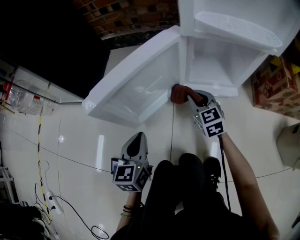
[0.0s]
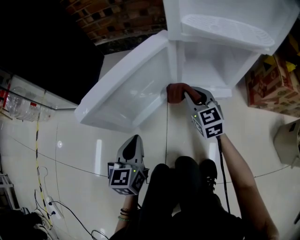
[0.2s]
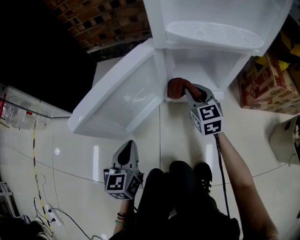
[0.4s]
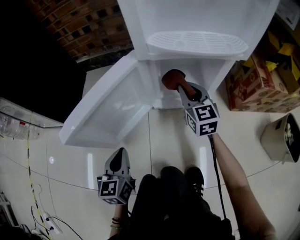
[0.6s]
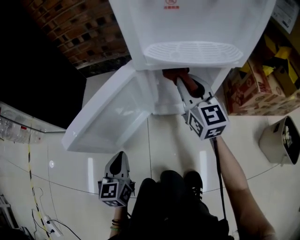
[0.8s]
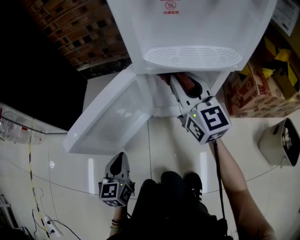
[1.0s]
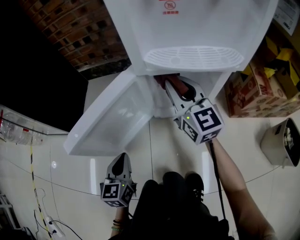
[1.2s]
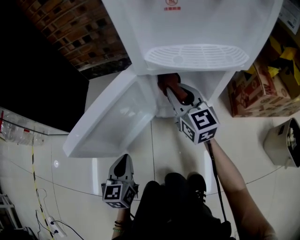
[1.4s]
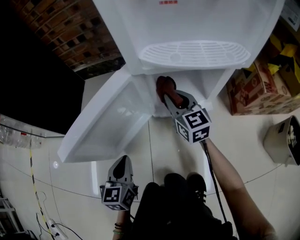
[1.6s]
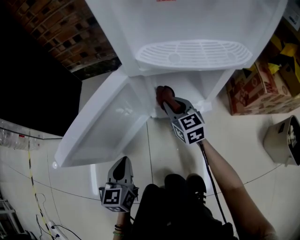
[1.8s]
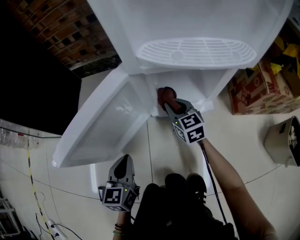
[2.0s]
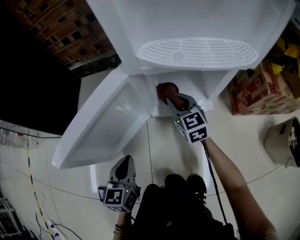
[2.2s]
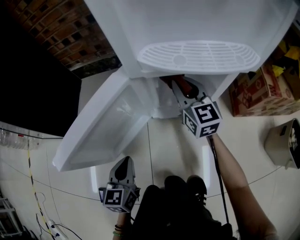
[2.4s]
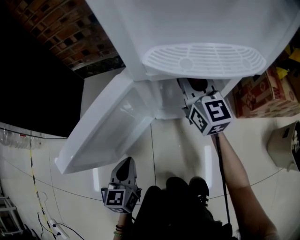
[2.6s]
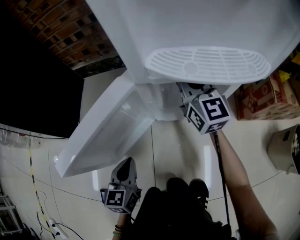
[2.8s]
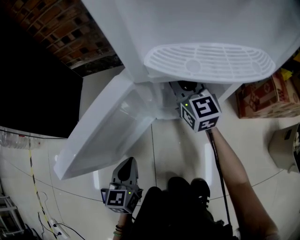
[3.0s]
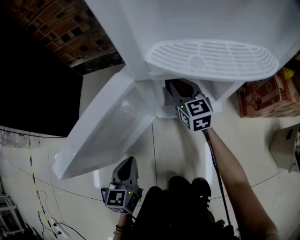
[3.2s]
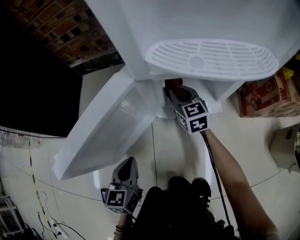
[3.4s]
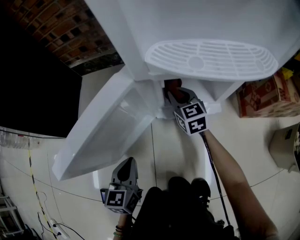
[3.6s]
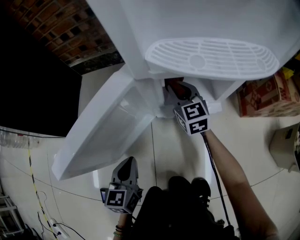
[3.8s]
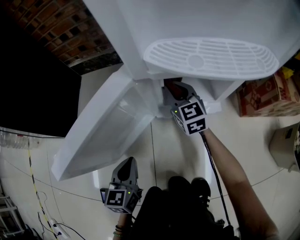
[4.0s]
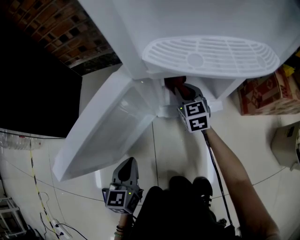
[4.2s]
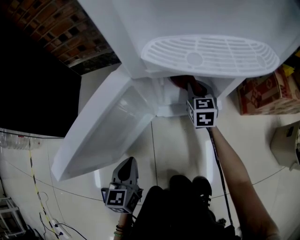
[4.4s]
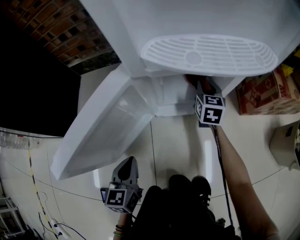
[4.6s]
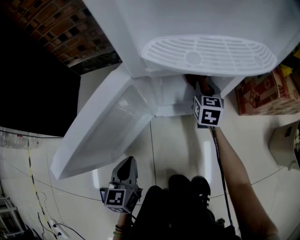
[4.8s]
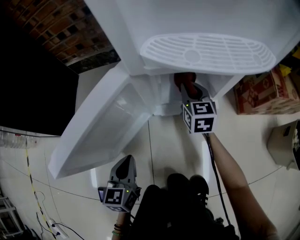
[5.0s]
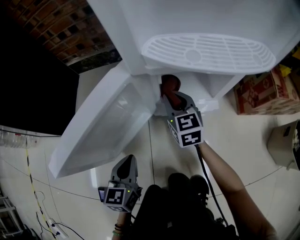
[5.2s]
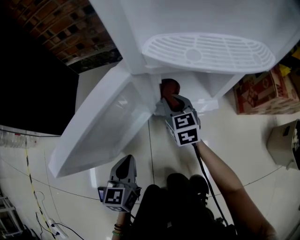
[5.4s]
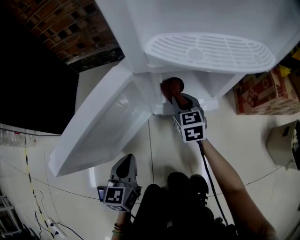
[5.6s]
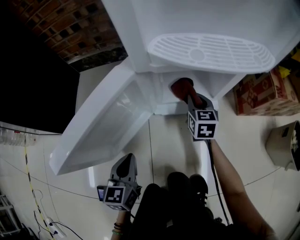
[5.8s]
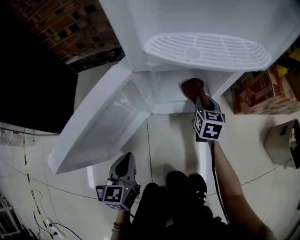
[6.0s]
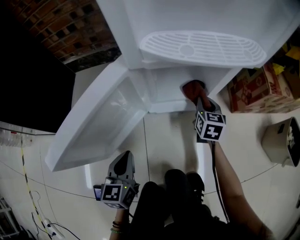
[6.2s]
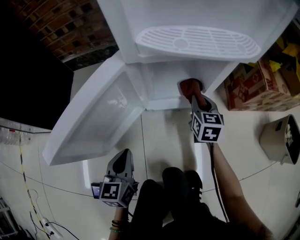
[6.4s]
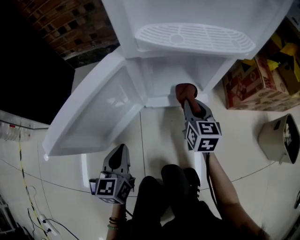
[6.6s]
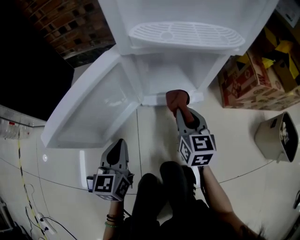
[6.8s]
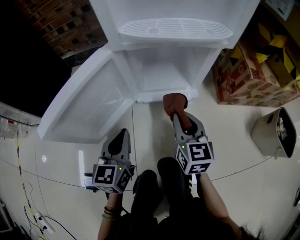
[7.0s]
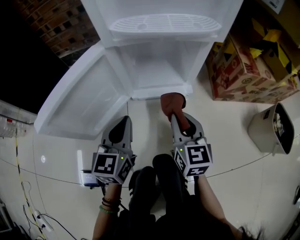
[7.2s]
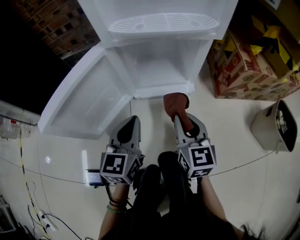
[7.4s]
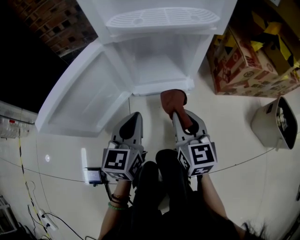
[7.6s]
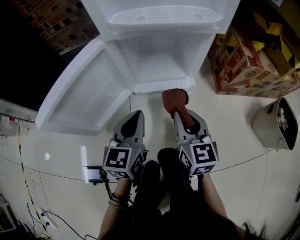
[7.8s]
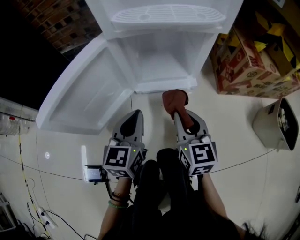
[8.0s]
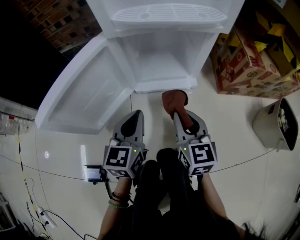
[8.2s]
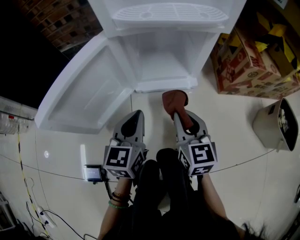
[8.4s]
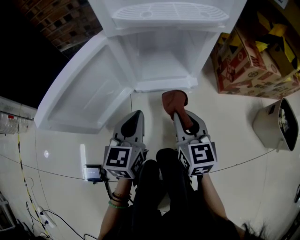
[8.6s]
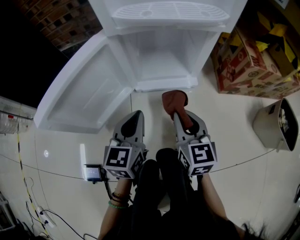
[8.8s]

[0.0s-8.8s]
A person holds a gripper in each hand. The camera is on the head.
0.0s to 1.4s: The right gripper travels upward by some 15 cm, and turns by approximately 30 degrees.
1.4s to 3.0s: The right gripper moves up and down over about 20 cm, changing direction 2 times.
3.0s to 4.4s: The right gripper travels downward and to the right by approximately 15 cm, and rotates roughly 30 degrees.
4.4s to 5.8s: The right gripper goes left and right, some 15 cm each way, reversing 2 times.
5.8s to 7.4s: The right gripper goes some 25 cm backward and upward; the left gripper moves to the right and upward, approximately 15 cm.
7.4s to 8.8s: The grippers move only a little.

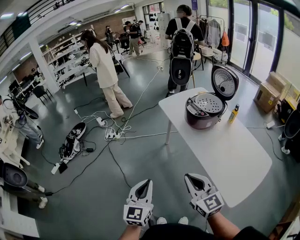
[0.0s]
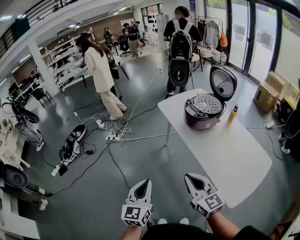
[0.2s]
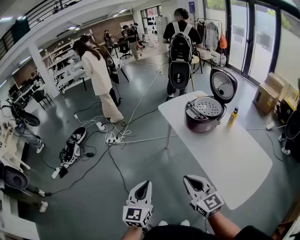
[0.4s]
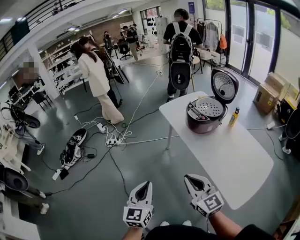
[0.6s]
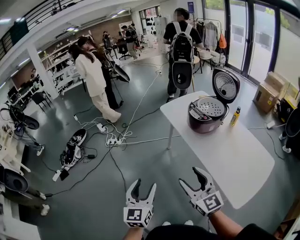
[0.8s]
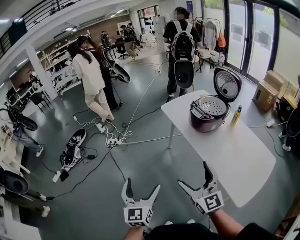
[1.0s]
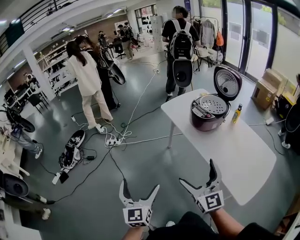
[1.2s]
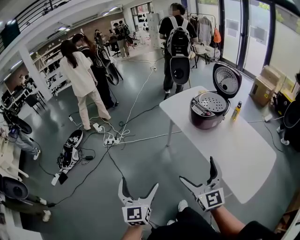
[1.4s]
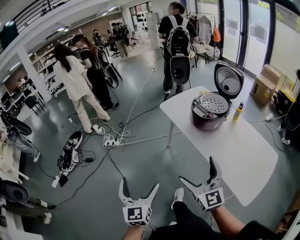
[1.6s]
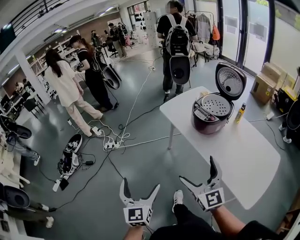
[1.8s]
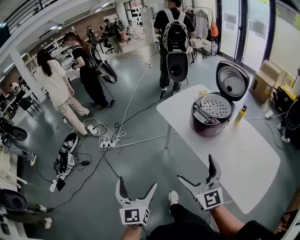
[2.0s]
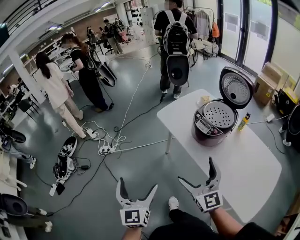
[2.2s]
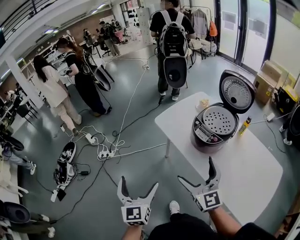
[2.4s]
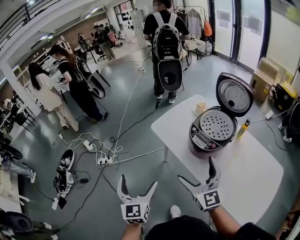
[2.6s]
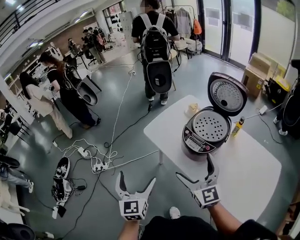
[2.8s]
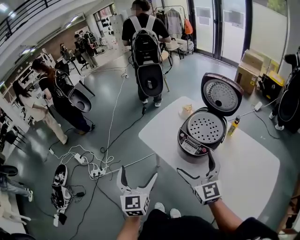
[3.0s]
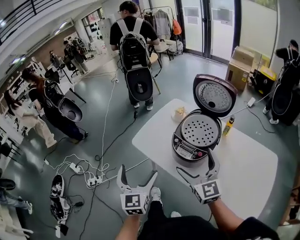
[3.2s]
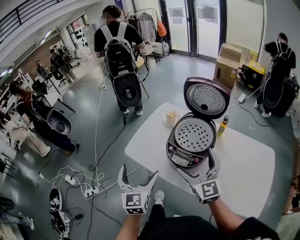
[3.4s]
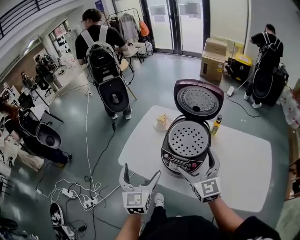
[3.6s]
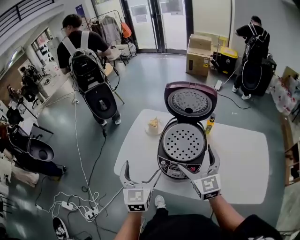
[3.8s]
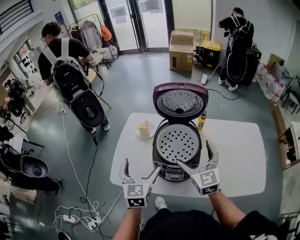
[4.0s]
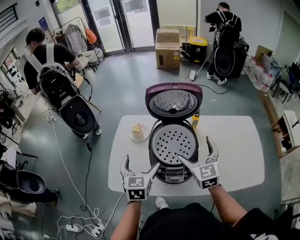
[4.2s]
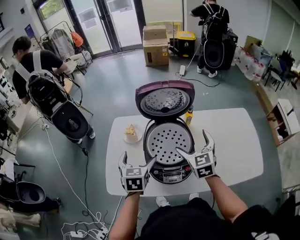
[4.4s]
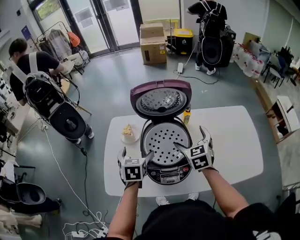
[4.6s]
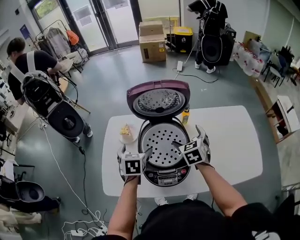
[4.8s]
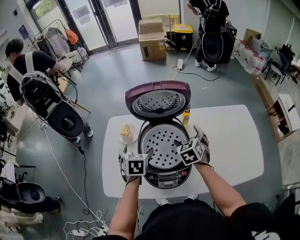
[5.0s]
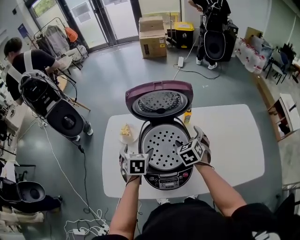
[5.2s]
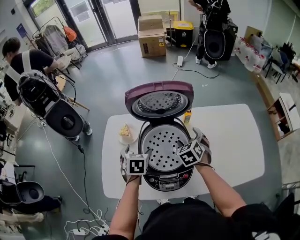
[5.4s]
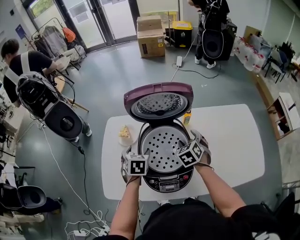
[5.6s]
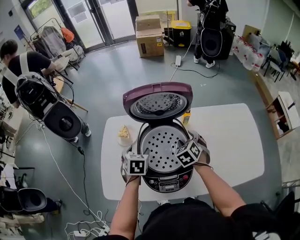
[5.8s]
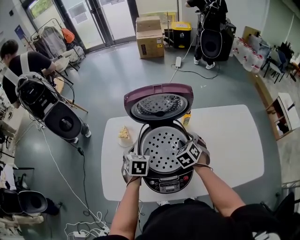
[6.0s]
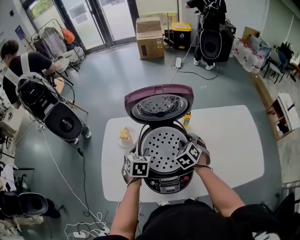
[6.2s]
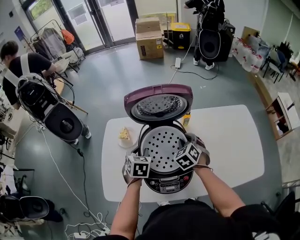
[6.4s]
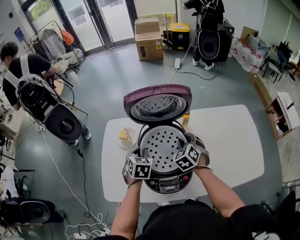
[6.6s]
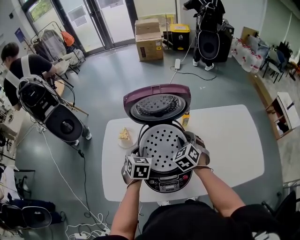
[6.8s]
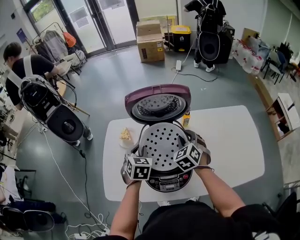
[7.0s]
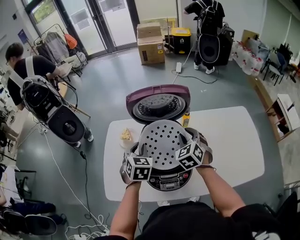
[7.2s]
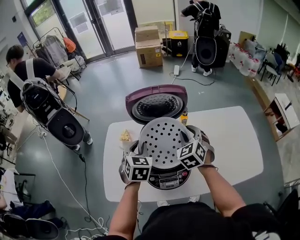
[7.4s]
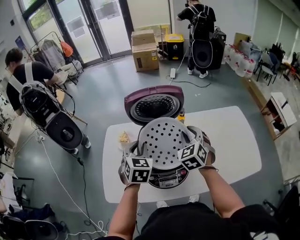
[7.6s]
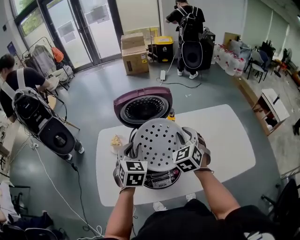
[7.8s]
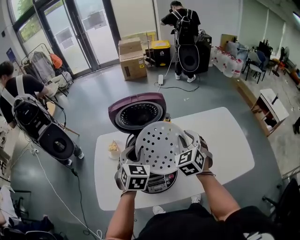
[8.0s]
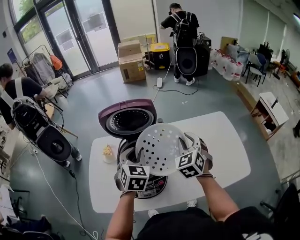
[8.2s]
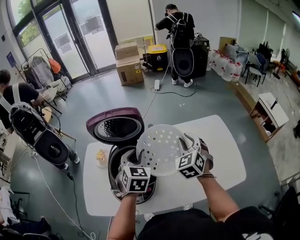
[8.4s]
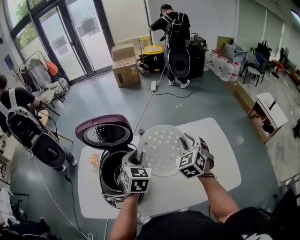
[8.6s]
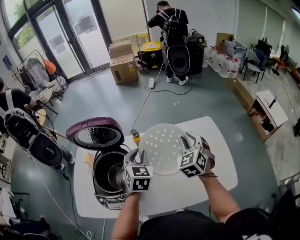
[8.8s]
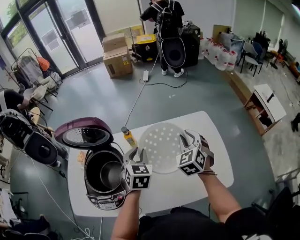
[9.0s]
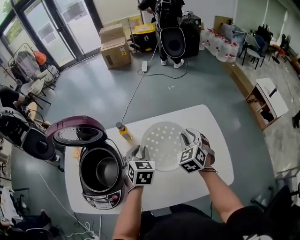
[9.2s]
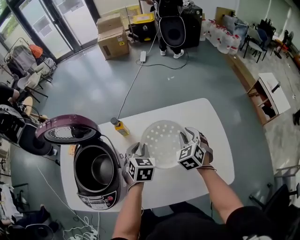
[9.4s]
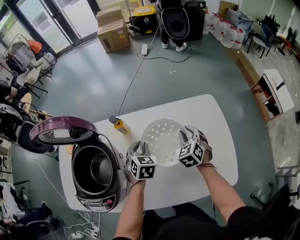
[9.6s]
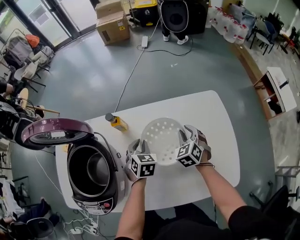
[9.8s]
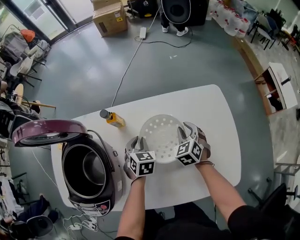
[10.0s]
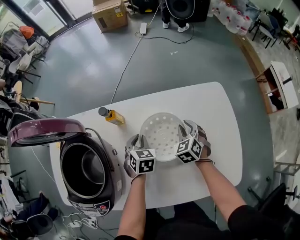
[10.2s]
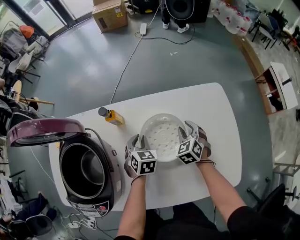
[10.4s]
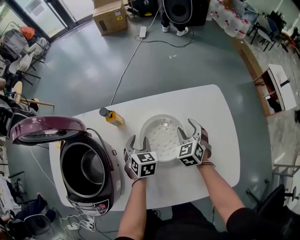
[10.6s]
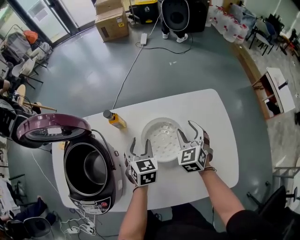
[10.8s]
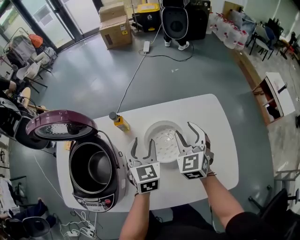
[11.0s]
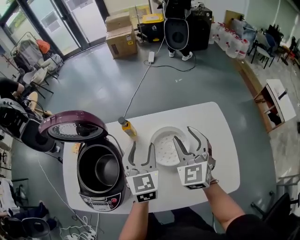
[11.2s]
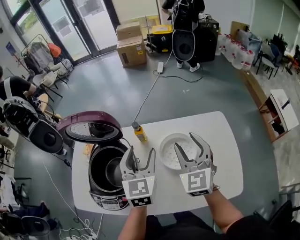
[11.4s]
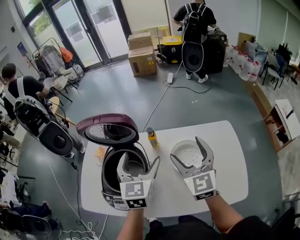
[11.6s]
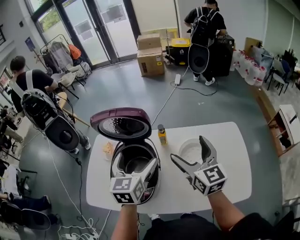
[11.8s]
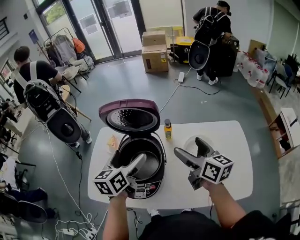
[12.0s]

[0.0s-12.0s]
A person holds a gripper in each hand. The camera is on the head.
0.0s to 1.6s: The right gripper is displaced forward by about 10 cm, and opens up. Meanwhile the left gripper moves to the left and forward, some 15 cm, and opens.
1.6s to 3.0s: Both grippers move forward, approximately 35 cm.
3.0s to 4.4s: The left gripper shifts by some 40 cm, and turns by some 50 degrees. The right gripper ends up some 30 cm from where it was, and swivels about 60 degrees.
4.4s to 6.0s: Both grippers travel together downward and forward, approximately 15 cm. The right gripper turns by roughly 30 degrees, and closes up. Meanwhile the left gripper closes.
6.0s to 7.6s: The grippers both shift upward by some 15 cm. The left gripper changes its angle by approximately 20 degrees.
7.6s to 9.0s: Both grippers move to the right, about 30 cm.
9.0s to 10.4s: Both grippers travel together downward, roughly 25 cm.
10.4s to 12.0s: The two grippers go roughly 40 cm upward and to the left. The right gripper points its fingers approximately 40 degrees further upward, and opens up. The left gripper tilts its fingers approximately 30 degrees upward, and opens up.

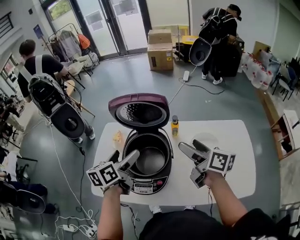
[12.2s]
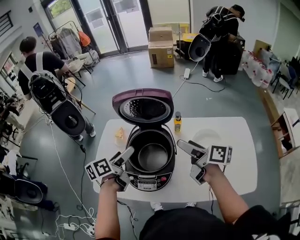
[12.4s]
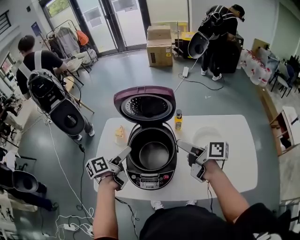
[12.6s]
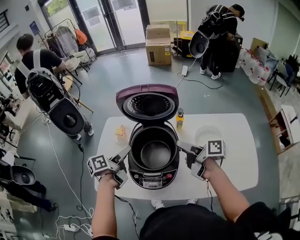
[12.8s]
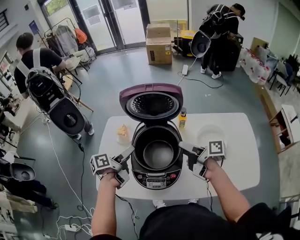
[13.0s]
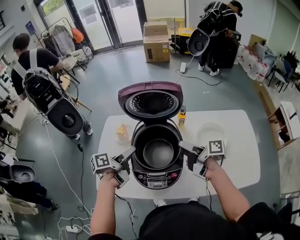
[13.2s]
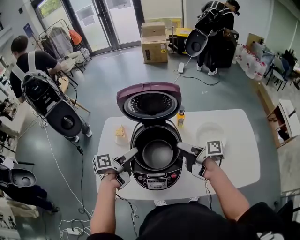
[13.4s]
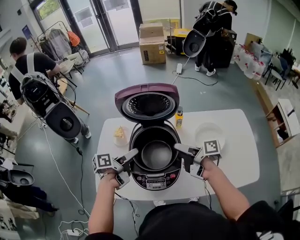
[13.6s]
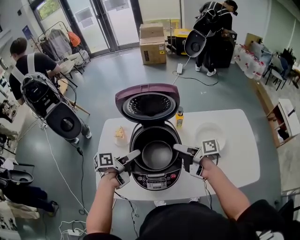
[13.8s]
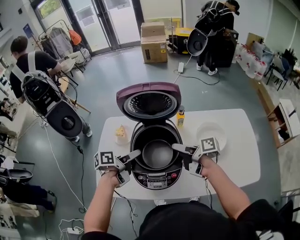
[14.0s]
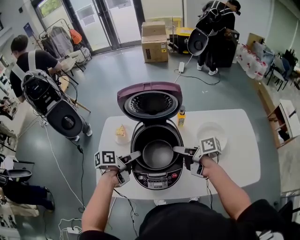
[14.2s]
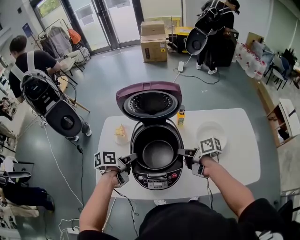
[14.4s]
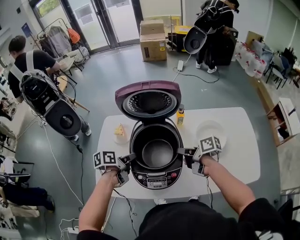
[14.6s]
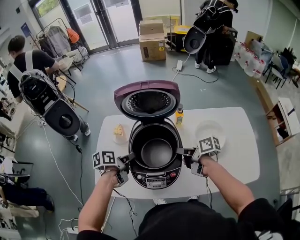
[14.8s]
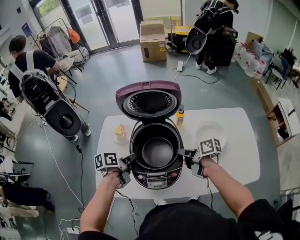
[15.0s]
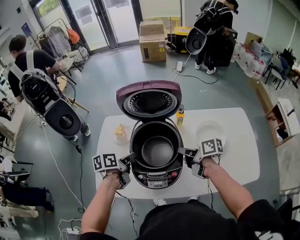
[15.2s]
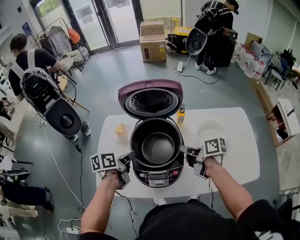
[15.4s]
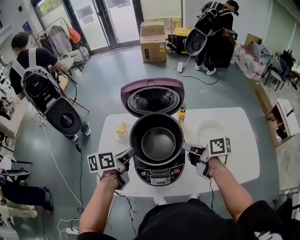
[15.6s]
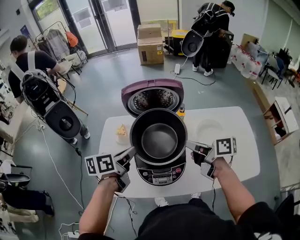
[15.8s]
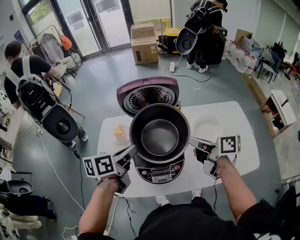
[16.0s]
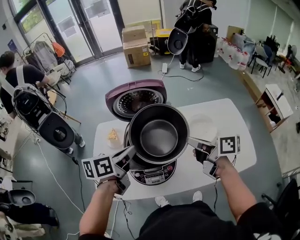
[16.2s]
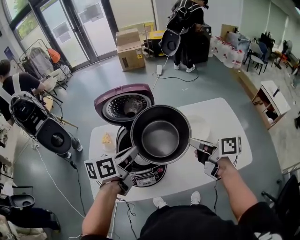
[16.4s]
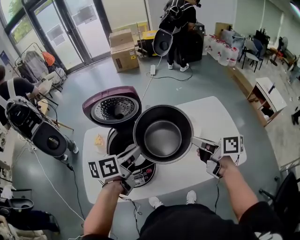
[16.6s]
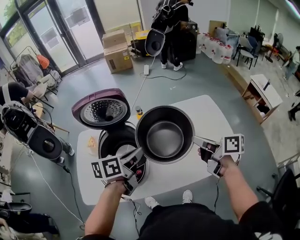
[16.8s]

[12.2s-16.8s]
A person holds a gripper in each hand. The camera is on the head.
12.2s to 13.8s: The left gripper goes some 10 cm downward, and swivels approximately 40 degrees. The right gripper goes approximately 15 cm downward and to the left, and changes its angle by some 40 degrees.
13.8s to 15.2s: The left gripper closes up. Meanwhile the right gripper closes.
15.2s to 16.8s: Both grippers move to the right and upward, some 25 cm. The left gripper changes its angle by some 20 degrees; the right gripper rotates about 30 degrees.
